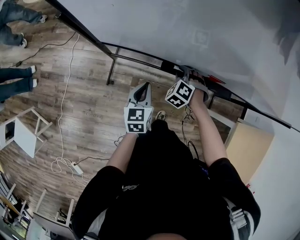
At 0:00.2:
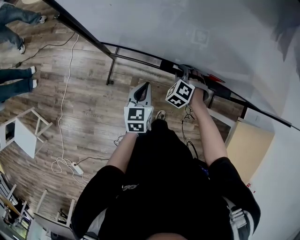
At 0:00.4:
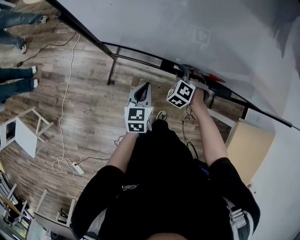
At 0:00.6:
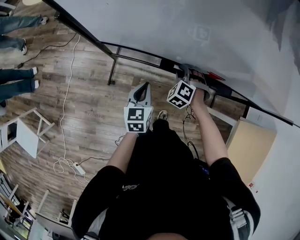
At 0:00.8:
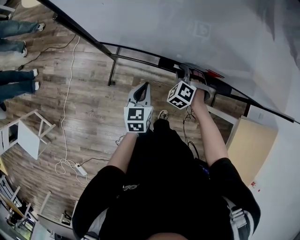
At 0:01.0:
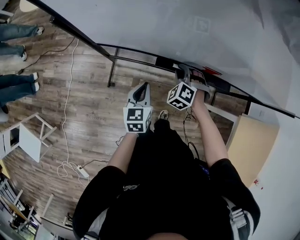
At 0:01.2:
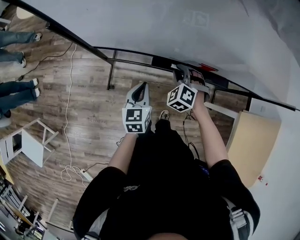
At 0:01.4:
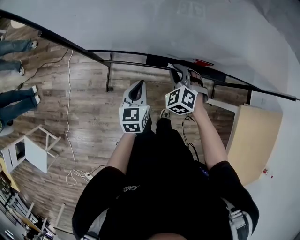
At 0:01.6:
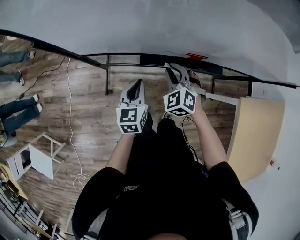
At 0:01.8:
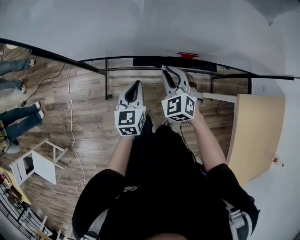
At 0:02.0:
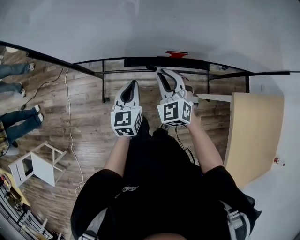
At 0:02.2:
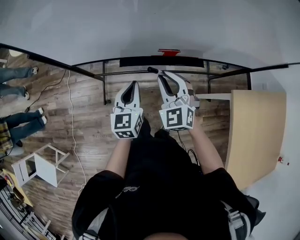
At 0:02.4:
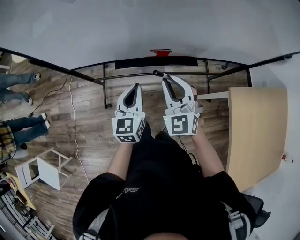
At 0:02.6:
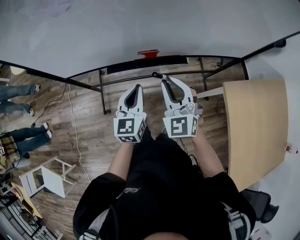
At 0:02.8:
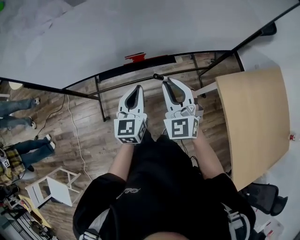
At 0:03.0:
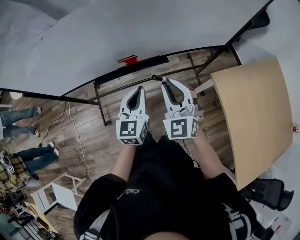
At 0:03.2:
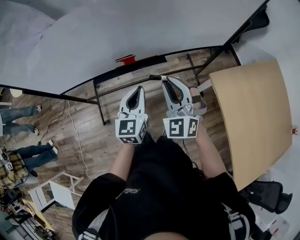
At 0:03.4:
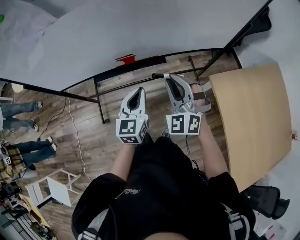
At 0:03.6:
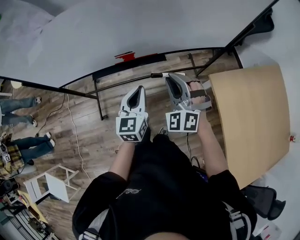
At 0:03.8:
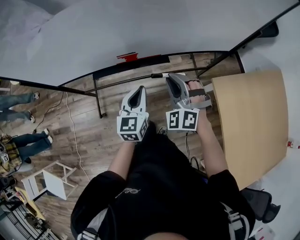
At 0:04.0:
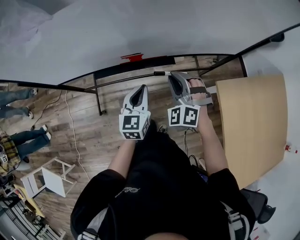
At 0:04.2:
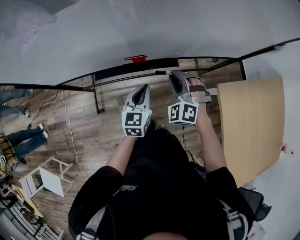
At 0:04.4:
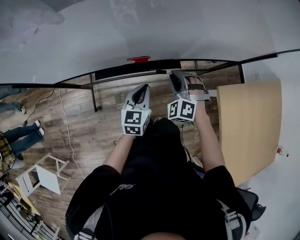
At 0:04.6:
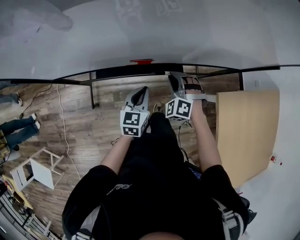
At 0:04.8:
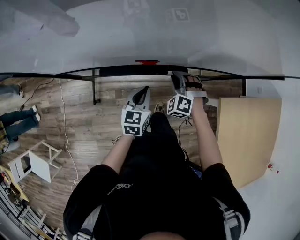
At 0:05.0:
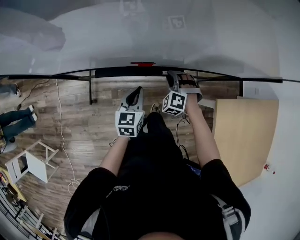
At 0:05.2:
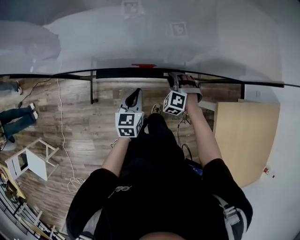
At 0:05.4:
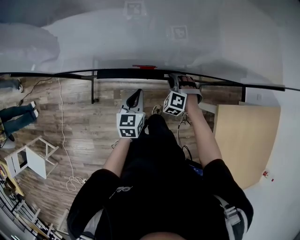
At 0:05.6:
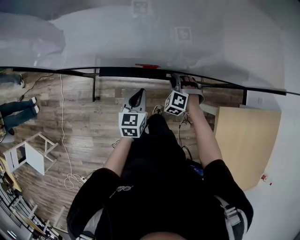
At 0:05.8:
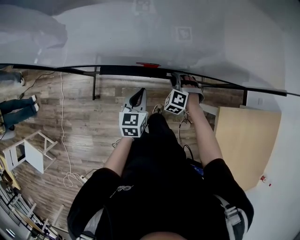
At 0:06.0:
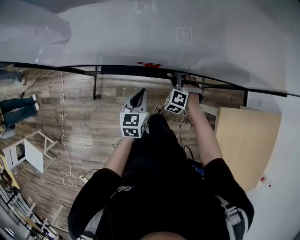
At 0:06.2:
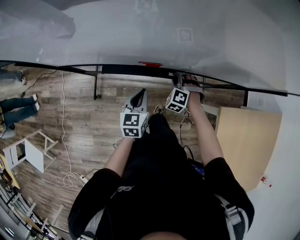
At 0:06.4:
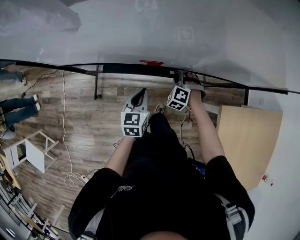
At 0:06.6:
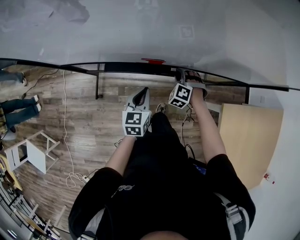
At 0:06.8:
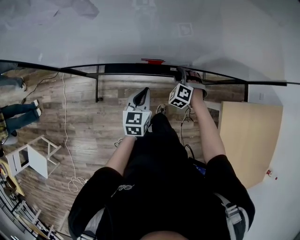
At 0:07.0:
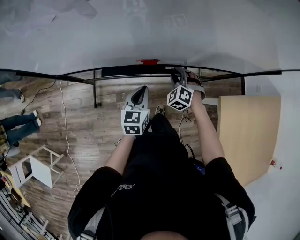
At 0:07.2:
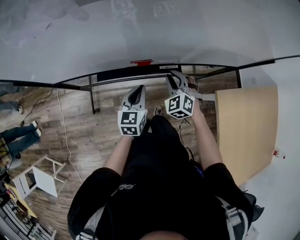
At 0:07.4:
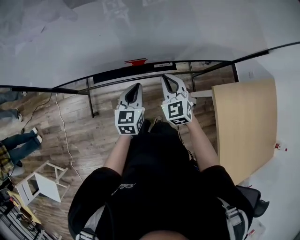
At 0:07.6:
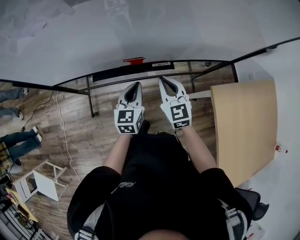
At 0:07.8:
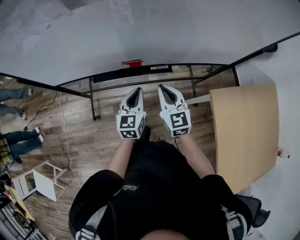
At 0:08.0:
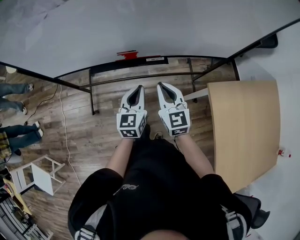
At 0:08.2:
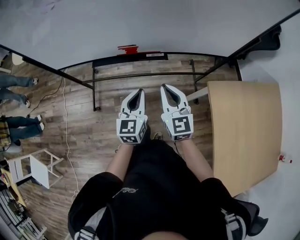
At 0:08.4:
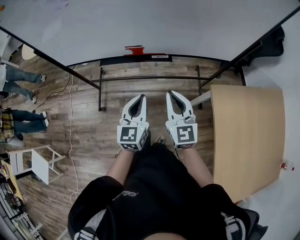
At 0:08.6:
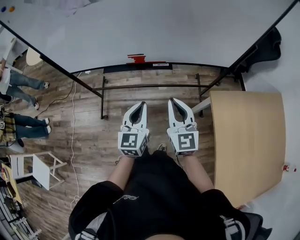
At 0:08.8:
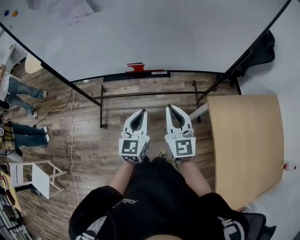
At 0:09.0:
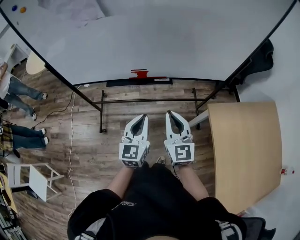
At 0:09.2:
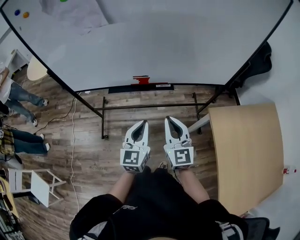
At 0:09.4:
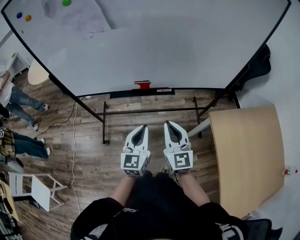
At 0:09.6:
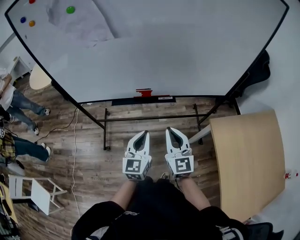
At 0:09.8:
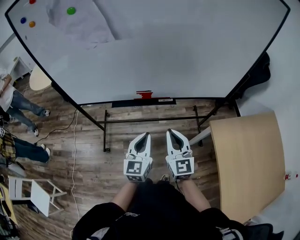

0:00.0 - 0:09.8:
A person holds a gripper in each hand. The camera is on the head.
0:00.0 - 0:01.4: The right gripper travels upward by roughly 10 cm.
0:01.4 - 0:02.8: The right gripper is displaced to the right, upward and backward by approximately 35 cm, and tilts its fingers roughly 40 degrees upward; the left gripper travels to the right and upward by about 30 cm, and turns by approximately 20 degrees.
0:02.8 - 0:04.2: The grippers both shift downward and forward by roughly 10 cm. The right gripper rotates about 40 degrees.
0:04.2 - 0:05.6: The right gripper moves downward and forward, some 15 cm, and rotates some 20 degrees. The left gripper heads downward, covering about 5 cm.
0:05.6 - 0:07.0: The grippers stay close to where they were, moving slightly.
0:07.0 - 0:08.4: The right gripper is displaced backward and upward by roughly 30 cm, points its fingers roughly 40 degrees further upward, and closes. The left gripper travels backward, upward and to the right by approximately 25 cm.
0:08.4 - 0:09.8: Both grippers move to the left, approximately 5 cm.

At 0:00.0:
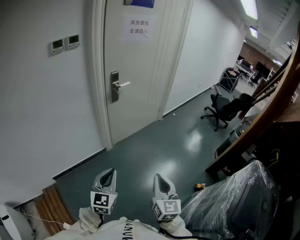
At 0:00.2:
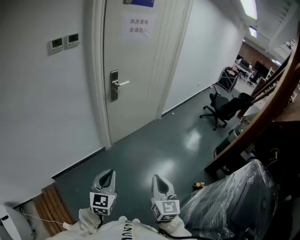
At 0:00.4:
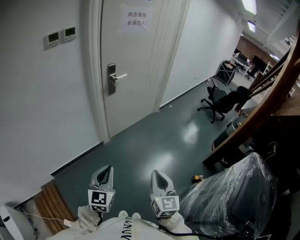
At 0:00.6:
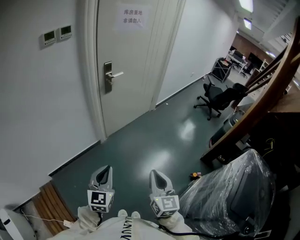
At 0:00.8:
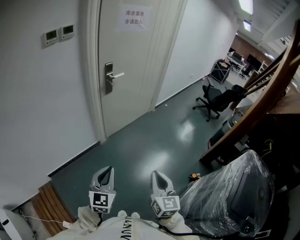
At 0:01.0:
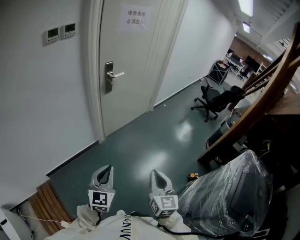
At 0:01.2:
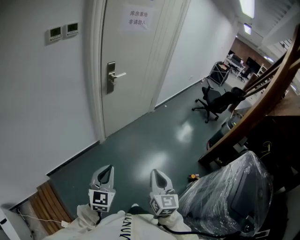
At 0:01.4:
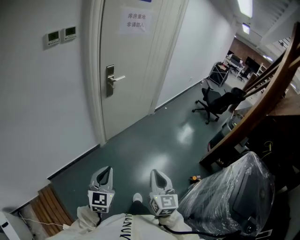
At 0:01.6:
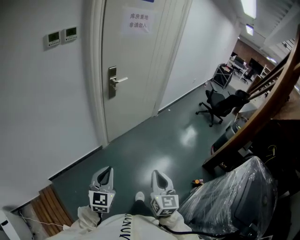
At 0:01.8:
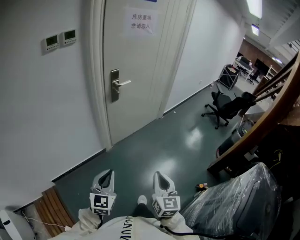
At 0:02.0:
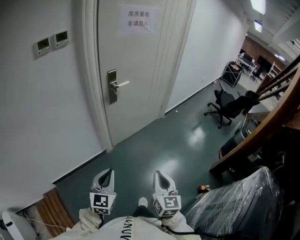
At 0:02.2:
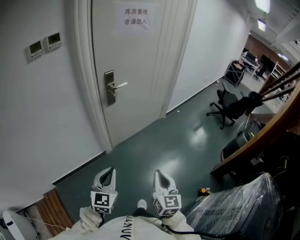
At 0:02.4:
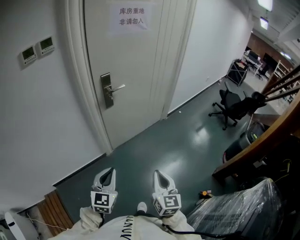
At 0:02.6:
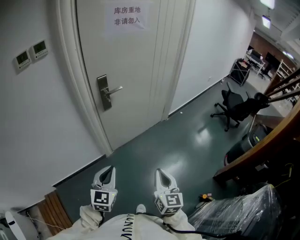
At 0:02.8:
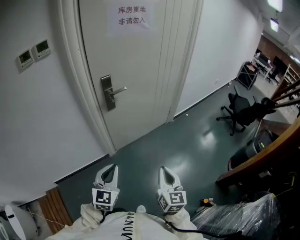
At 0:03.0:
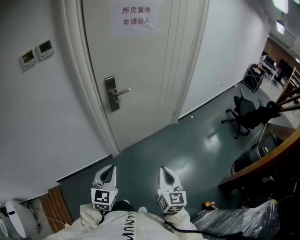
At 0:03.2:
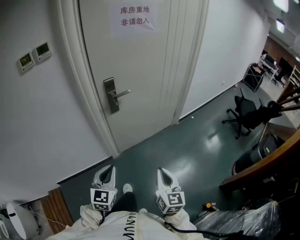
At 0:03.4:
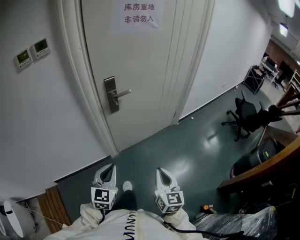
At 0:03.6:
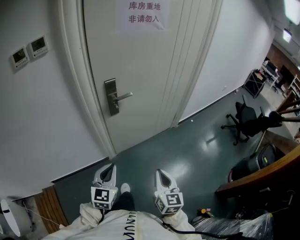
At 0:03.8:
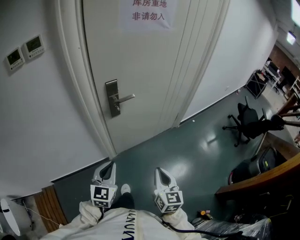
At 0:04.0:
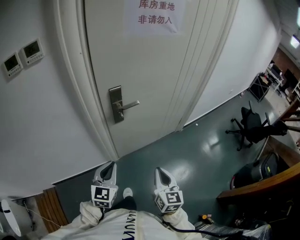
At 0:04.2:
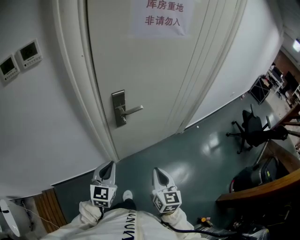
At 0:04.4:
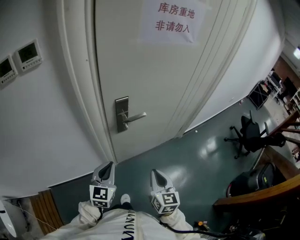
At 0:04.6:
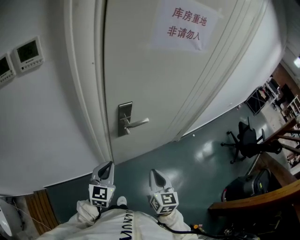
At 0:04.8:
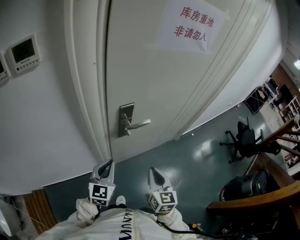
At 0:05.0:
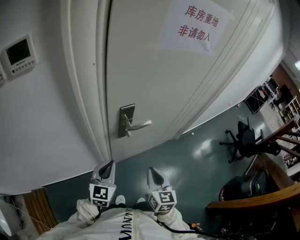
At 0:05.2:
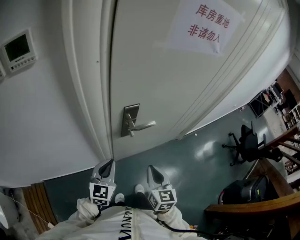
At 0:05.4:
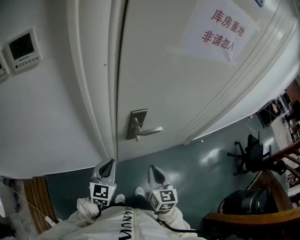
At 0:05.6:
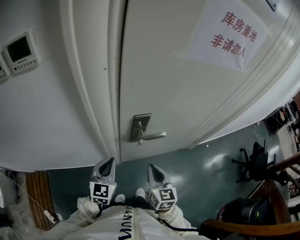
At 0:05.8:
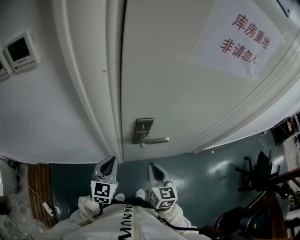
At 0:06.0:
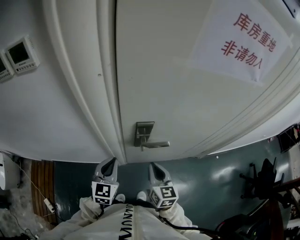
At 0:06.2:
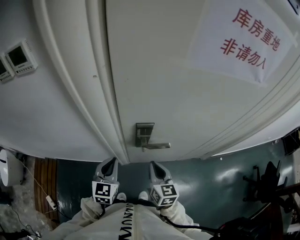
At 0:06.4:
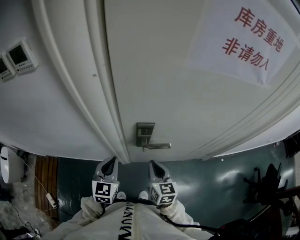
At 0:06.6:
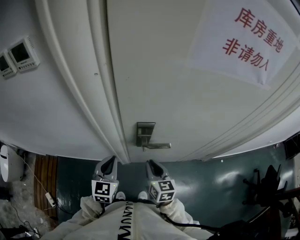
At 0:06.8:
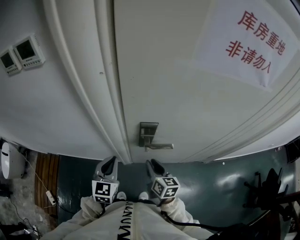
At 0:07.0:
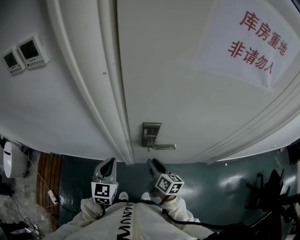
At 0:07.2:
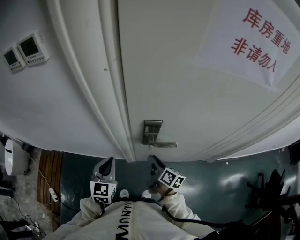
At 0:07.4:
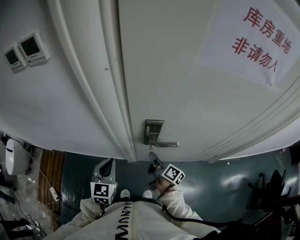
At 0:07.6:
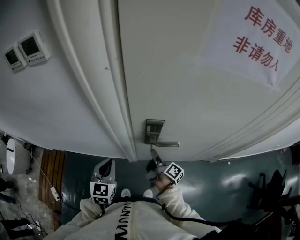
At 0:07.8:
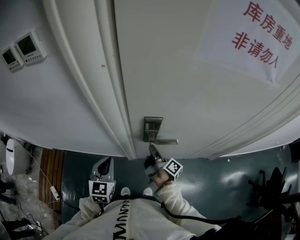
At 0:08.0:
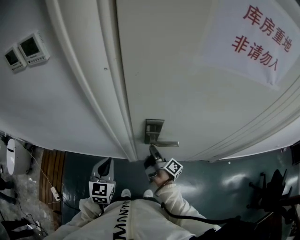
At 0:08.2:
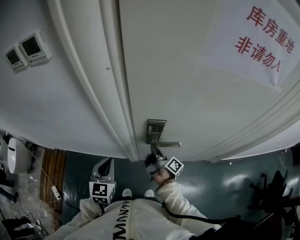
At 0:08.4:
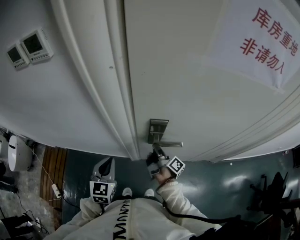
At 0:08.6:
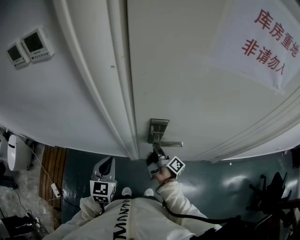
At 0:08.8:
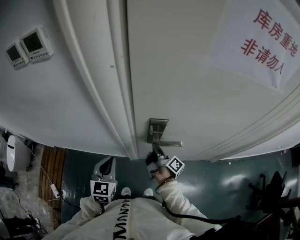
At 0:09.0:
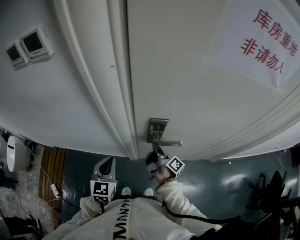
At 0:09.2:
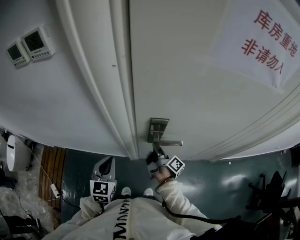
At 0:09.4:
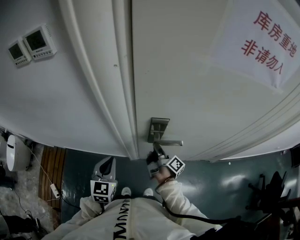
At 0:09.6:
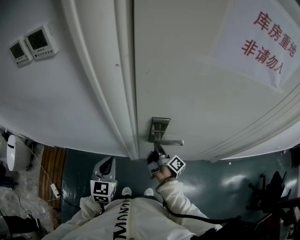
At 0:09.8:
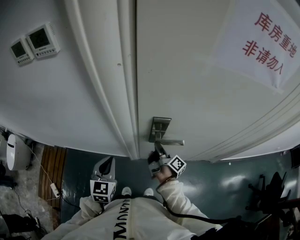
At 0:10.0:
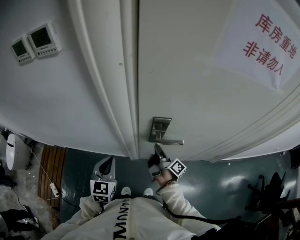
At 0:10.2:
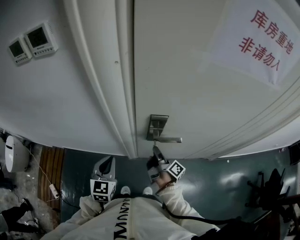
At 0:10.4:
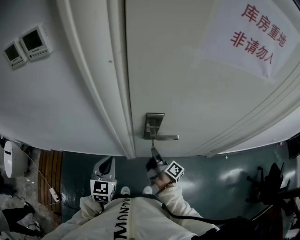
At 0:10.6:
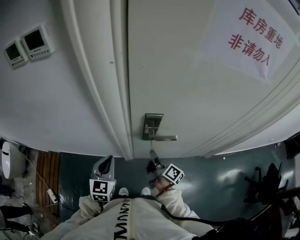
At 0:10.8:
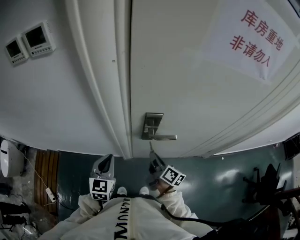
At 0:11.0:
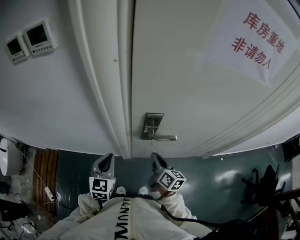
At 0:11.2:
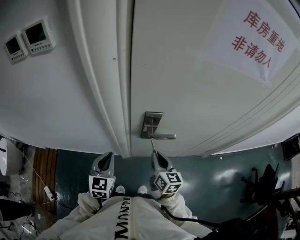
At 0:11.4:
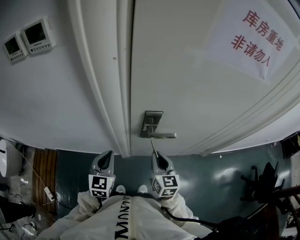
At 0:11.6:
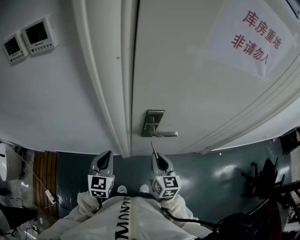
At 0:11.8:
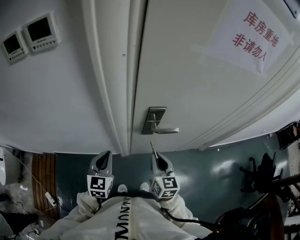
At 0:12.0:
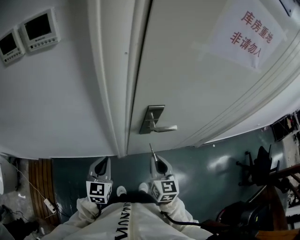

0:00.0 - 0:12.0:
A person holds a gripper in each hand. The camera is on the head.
0:00.0 - 0:01.6: The left gripper changes place by approximately 5 cm. Meanwhile the right gripper shifts by some 5 cm.
0:01.6 - 0:03.0: The grippers both shift forward by roughly 25 cm.
0:03.0 - 0:04.4: The right gripper heads forward and to the left, covering roughly 25 cm. Meanwhile the left gripper moves forward, about 25 cm.
0:04.4 - 0:06.0: The right gripper heads forward, covering some 20 cm, and turns by approximately 20 degrees, while the left gripper moves forward, roughly 10 cm.
0:06.0 - 0:07.6: The right gripper heads downward and forward, covering about 15 cm, twists roughly 70 degrees clockwise, seen from behind, and opens up. Meanwhile the left gripper shifts by approximately 5 cm.
0:07.6 - 0:09.0: The right gripper closes its fingers.
0:09.0 - 0:10.4: The right gripper travels backward by about 5 cm.
0:10.4 - 0:12.0: The right gripper travels upward and backward by some 15 cm, and twists about 80 degrees counterclockwise, seen from behind.

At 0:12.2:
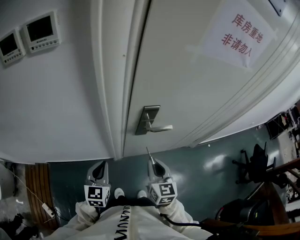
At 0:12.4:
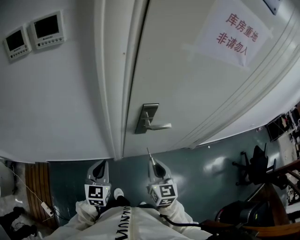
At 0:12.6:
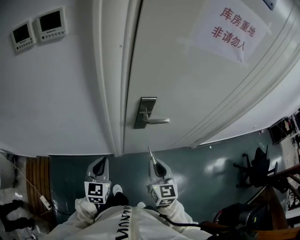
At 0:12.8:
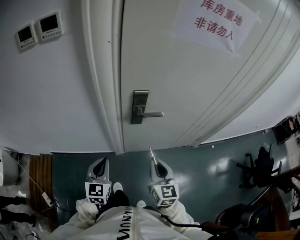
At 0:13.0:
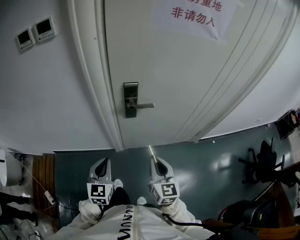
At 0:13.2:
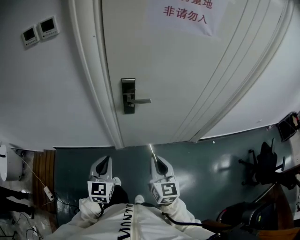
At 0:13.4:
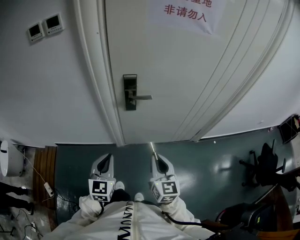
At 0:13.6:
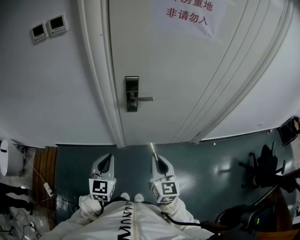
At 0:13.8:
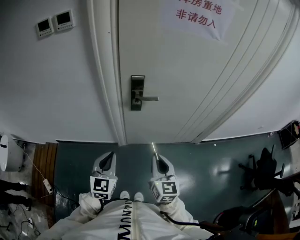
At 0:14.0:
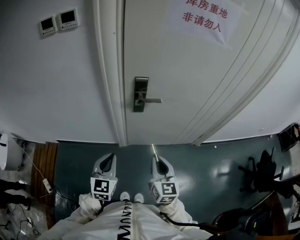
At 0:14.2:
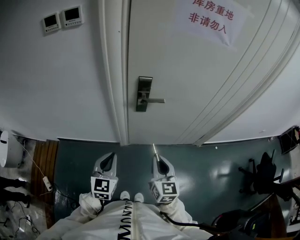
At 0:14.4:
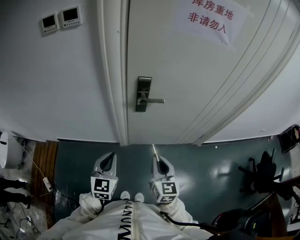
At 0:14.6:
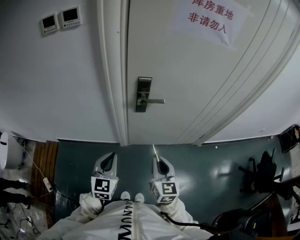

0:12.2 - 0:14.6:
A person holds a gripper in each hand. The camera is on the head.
0:12.2 - 0:13.4: Both grippers move backward and to the right, roughly 20 cm.
0:13.4 - 0:14.6: There are only small adjustments of the grippers.
